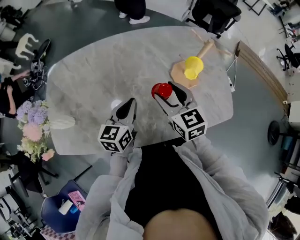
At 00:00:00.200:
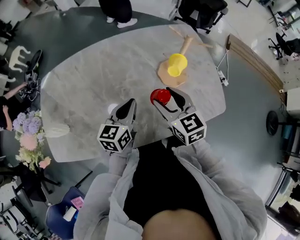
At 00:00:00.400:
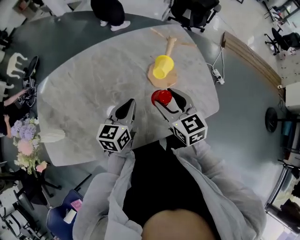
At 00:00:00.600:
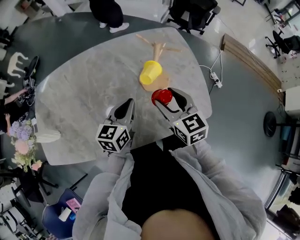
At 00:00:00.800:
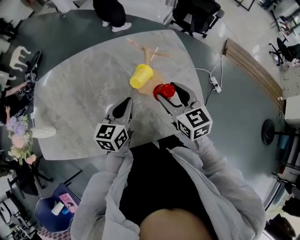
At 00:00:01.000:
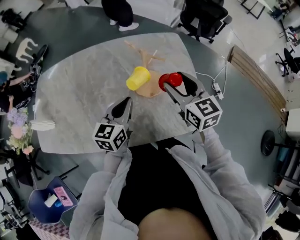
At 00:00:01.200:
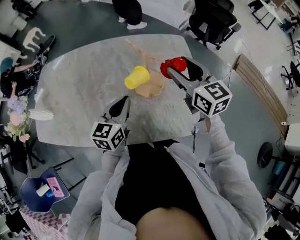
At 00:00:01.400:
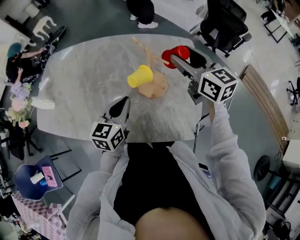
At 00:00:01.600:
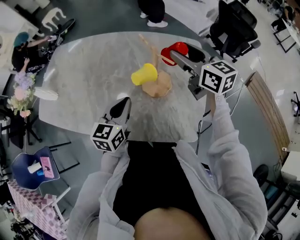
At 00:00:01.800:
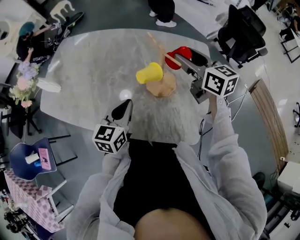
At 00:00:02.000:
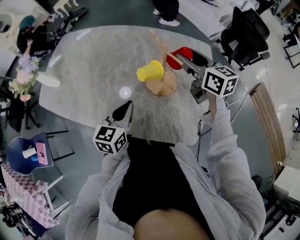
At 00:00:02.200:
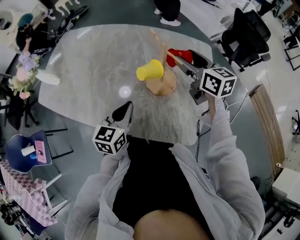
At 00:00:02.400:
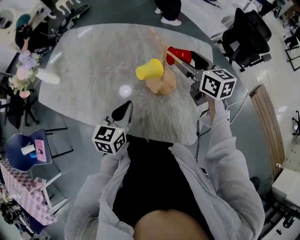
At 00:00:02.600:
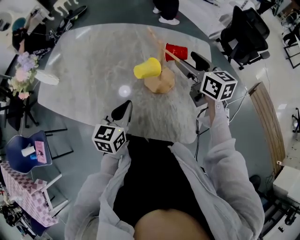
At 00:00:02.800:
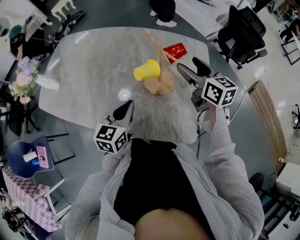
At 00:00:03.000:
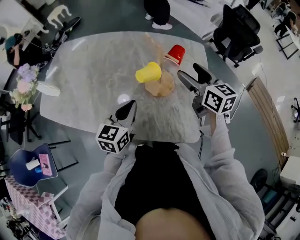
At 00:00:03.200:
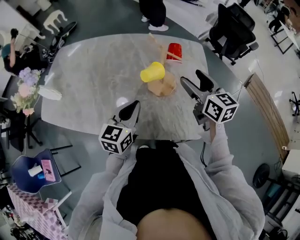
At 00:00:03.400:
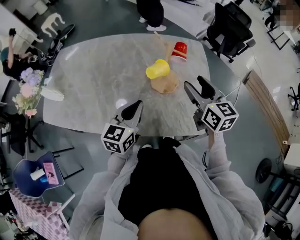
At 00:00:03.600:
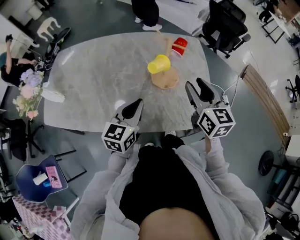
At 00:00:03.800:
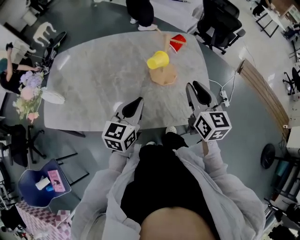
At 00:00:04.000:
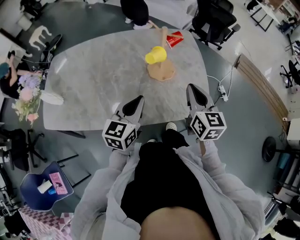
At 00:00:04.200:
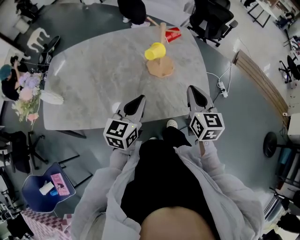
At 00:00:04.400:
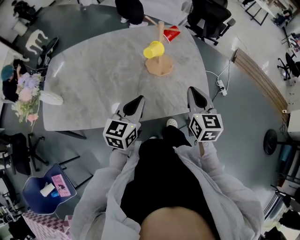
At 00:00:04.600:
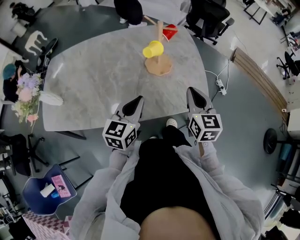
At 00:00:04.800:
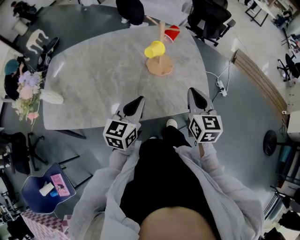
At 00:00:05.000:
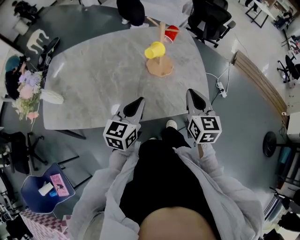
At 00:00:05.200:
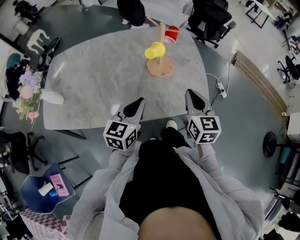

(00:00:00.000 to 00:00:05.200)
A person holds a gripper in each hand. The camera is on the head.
00:00:00.000 - 00:00:01.800: The right gripper changes place by approximately 30 cm, and changes its angle by approximately 30 degrees. Meanwhile the left gripper shifts by some 20 cm, and rotates about 20 degrees.
00:00:01.800 - 00:00:03.400: The right gripper travels backward by roughly 15 cm, and swivels roughly 20 degrees.
00:00:03.400 - 00:00:05.200: The left gripper shifts some 10 cm backward, while the right gripper shifts approximately 15 cm backward, rotates approximately 20 degrees, and closes up.

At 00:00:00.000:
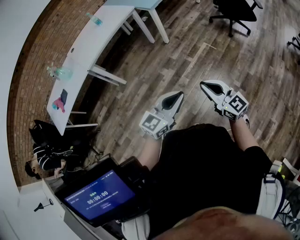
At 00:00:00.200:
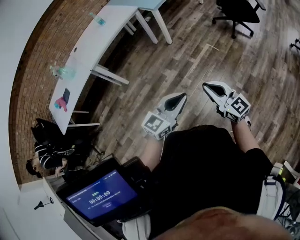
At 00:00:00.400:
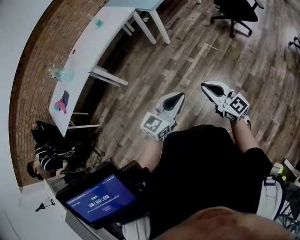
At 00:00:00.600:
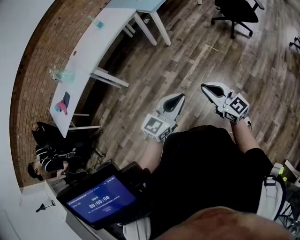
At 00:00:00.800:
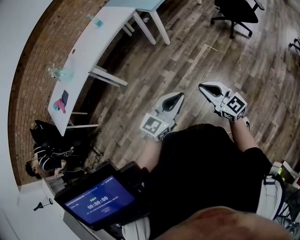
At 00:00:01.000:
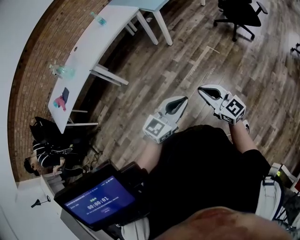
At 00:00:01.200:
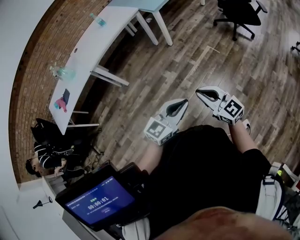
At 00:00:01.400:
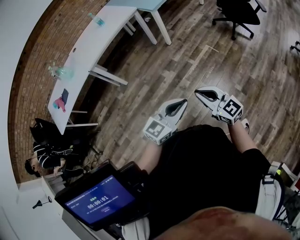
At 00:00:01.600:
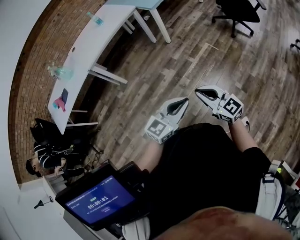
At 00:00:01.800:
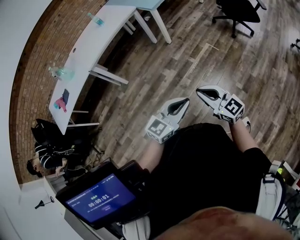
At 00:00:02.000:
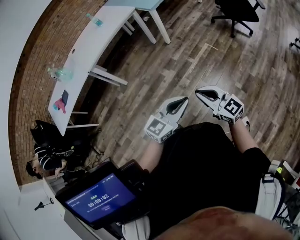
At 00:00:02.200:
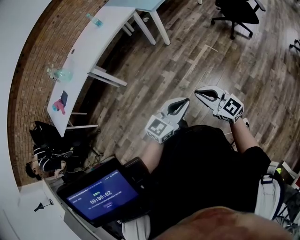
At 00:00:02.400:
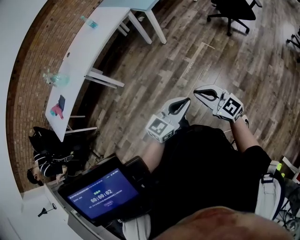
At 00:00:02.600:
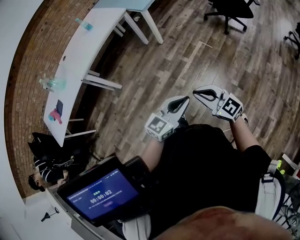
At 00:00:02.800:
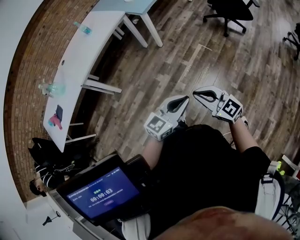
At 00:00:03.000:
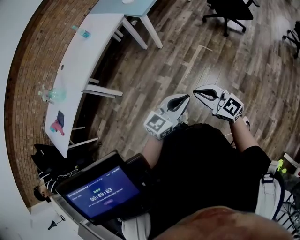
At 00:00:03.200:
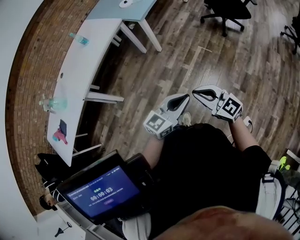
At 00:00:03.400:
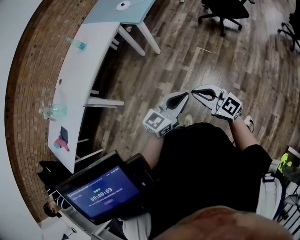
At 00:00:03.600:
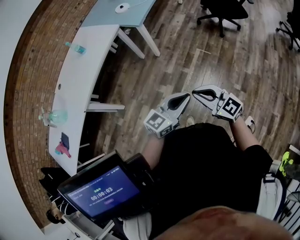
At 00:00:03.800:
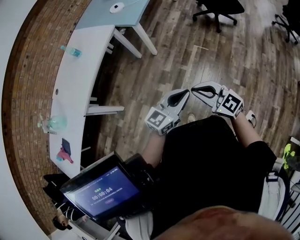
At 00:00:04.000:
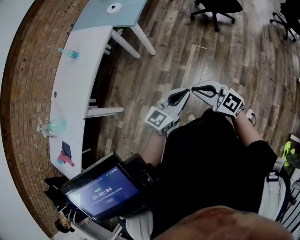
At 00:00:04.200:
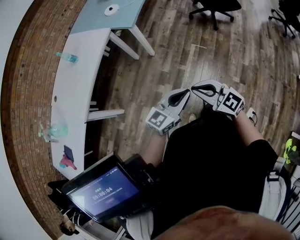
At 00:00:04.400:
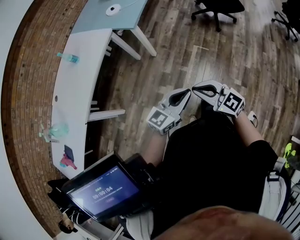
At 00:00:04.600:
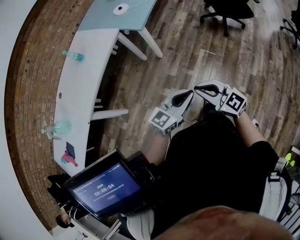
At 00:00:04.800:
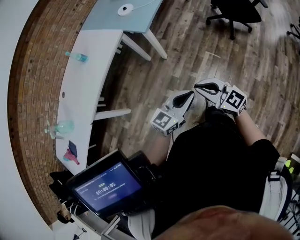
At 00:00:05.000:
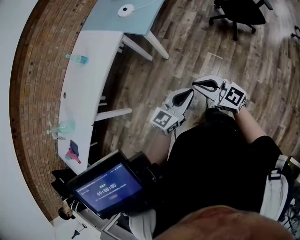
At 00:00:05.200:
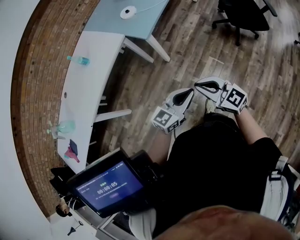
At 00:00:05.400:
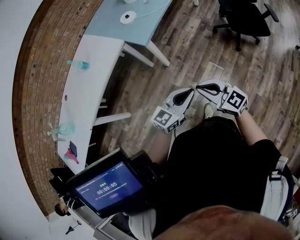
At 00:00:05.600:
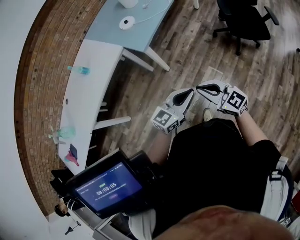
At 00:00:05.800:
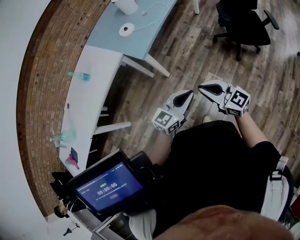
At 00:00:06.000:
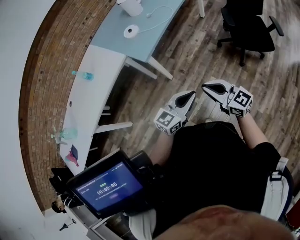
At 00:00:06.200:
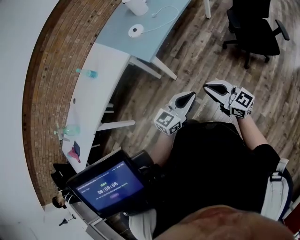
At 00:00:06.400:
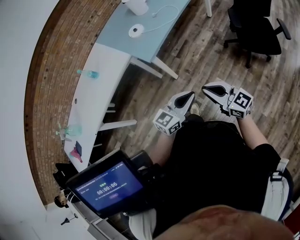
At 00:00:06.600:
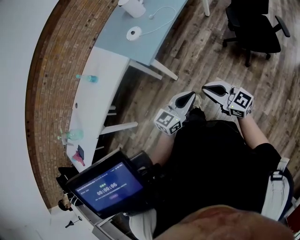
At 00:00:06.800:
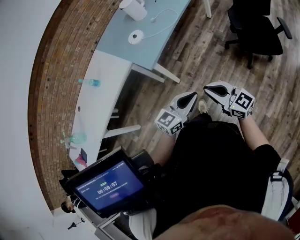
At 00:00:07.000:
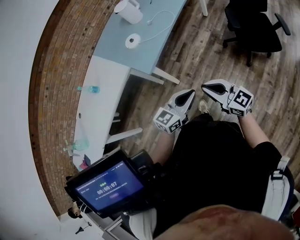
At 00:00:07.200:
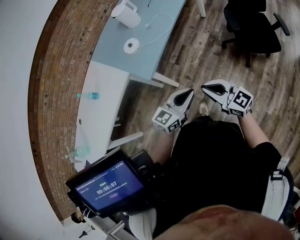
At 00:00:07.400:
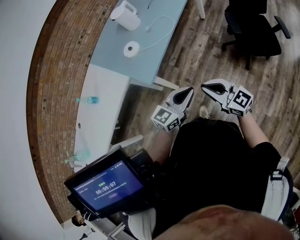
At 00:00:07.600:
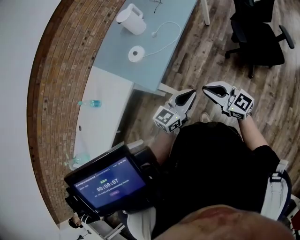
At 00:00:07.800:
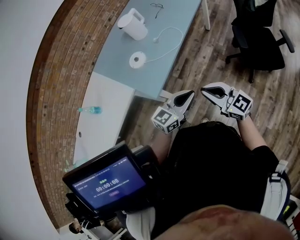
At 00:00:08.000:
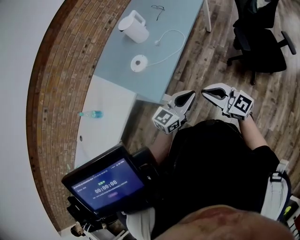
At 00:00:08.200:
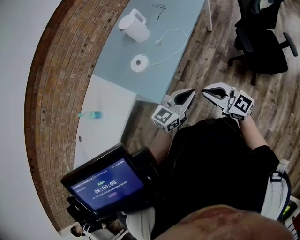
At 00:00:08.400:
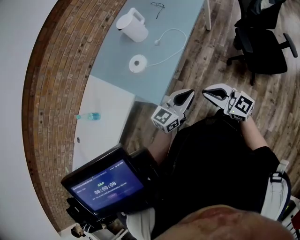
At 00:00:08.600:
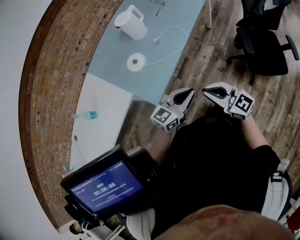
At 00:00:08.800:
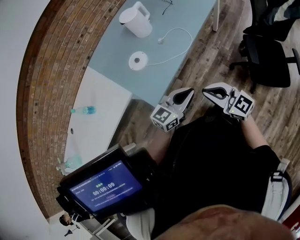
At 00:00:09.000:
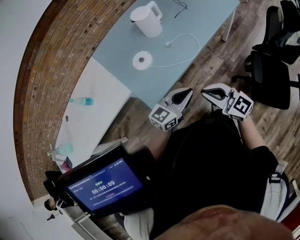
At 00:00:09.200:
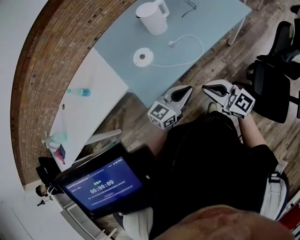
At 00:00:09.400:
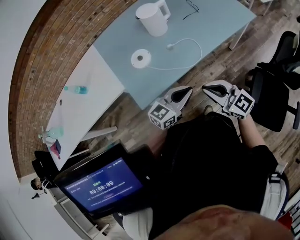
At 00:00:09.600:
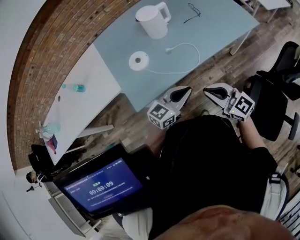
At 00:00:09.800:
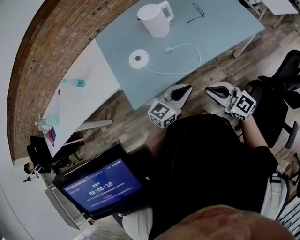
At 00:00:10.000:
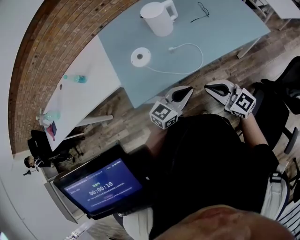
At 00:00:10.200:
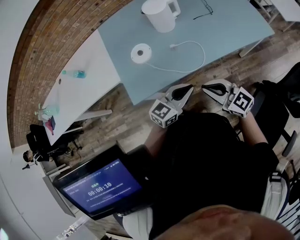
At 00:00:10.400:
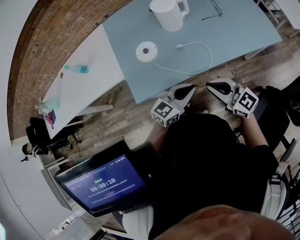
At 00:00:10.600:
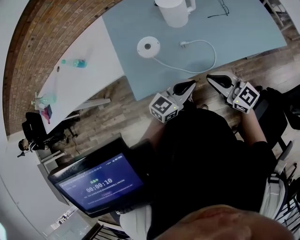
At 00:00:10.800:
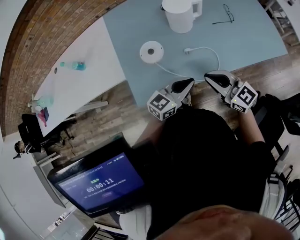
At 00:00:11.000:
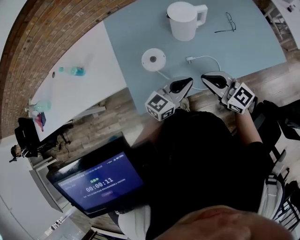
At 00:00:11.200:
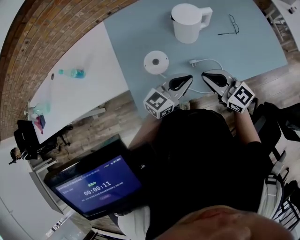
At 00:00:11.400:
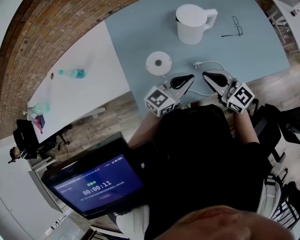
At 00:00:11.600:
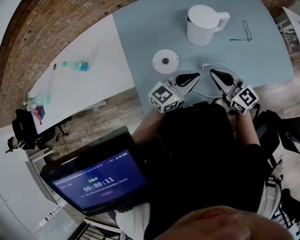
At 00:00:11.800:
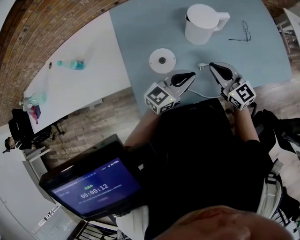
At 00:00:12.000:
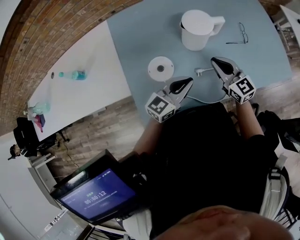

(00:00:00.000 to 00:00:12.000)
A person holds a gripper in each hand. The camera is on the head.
00:00:00.000 - 00:00:01.600: The grippers make only small movements.
00:00:01.600 - 00:00:03.000: Both grippers travel together forward, approximately 10 cm.
00:00:03.000 - 00:00:04.400: The right gripper moves forward and to the left, roughly 15 cm. Meanwhile the left gripper is displaced forward by about 15 cm.
00:00:04.400 - 00:00:06.000: Both grippers travel together forward and to the right, approximately 30 cm.
00:00:06.000 - 00:00:07.600: Both grippers travel together forward, approximately 20 cm.
00:00:07.600 - 00:00:09.000: Both grippers move forward, roughly 20 cm.
00:00:09.000 - 00:00:10.400: The grippers both shift forward and to the right by roughly 15 cm. The right gripper swivels roughly 20 degrees; the left gripper turns by some 20 degrees.
00:00:10.400 - 00:00:12.000: The right gripper shifts roughly 25 cm forward. Meanwhile the left gripper goes approximately 20 cm forward and to the left.

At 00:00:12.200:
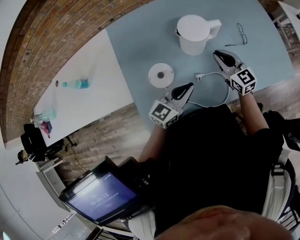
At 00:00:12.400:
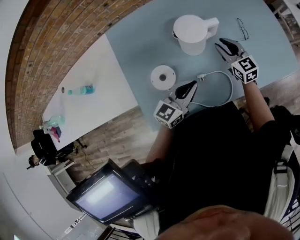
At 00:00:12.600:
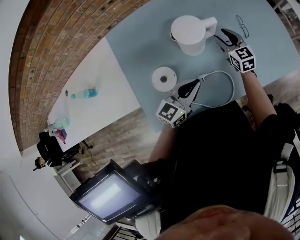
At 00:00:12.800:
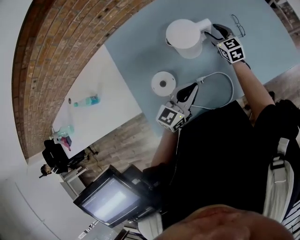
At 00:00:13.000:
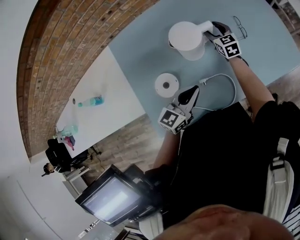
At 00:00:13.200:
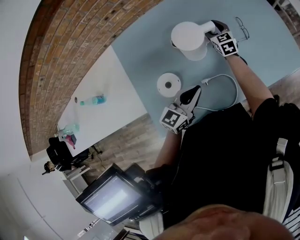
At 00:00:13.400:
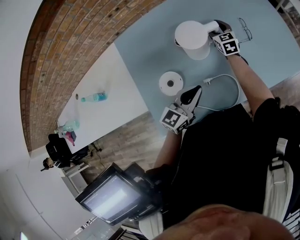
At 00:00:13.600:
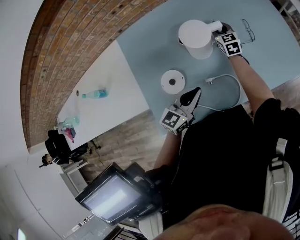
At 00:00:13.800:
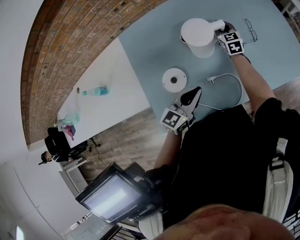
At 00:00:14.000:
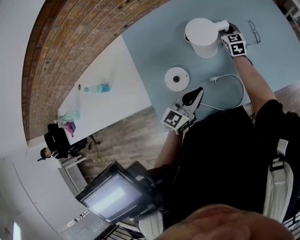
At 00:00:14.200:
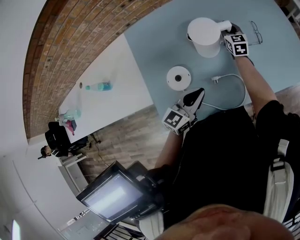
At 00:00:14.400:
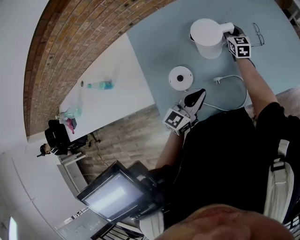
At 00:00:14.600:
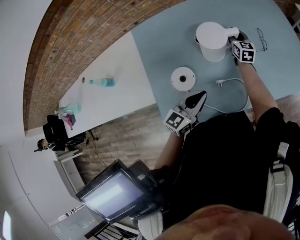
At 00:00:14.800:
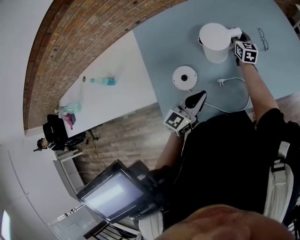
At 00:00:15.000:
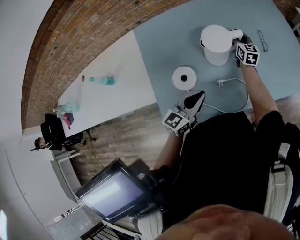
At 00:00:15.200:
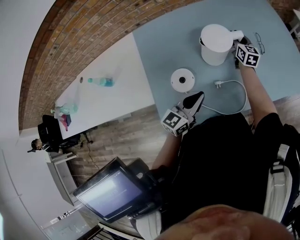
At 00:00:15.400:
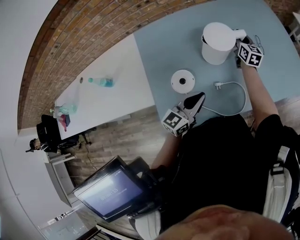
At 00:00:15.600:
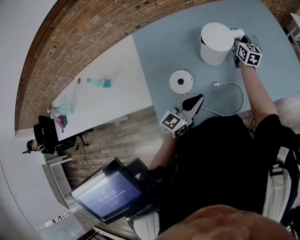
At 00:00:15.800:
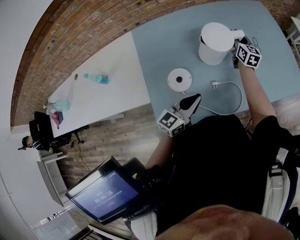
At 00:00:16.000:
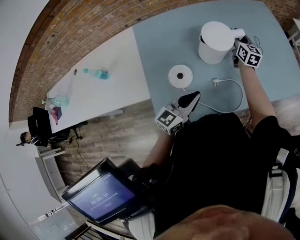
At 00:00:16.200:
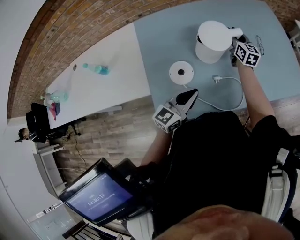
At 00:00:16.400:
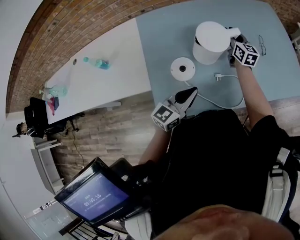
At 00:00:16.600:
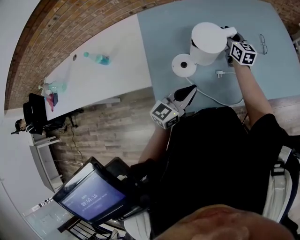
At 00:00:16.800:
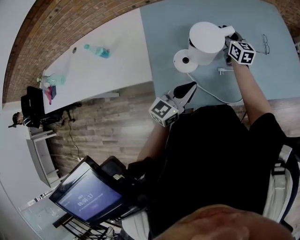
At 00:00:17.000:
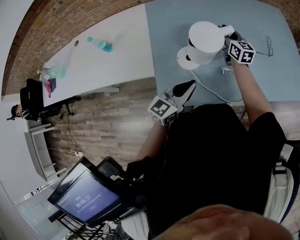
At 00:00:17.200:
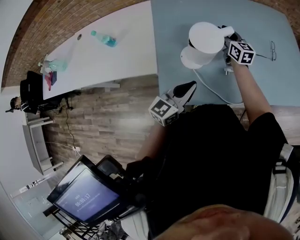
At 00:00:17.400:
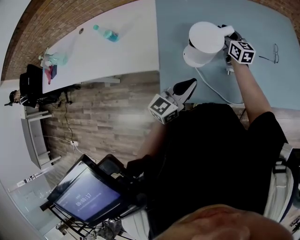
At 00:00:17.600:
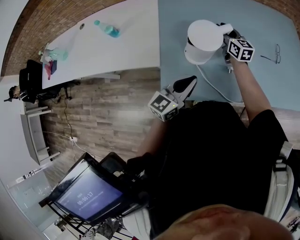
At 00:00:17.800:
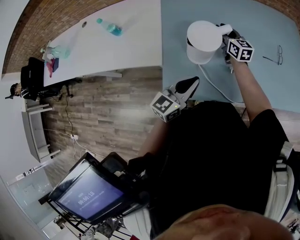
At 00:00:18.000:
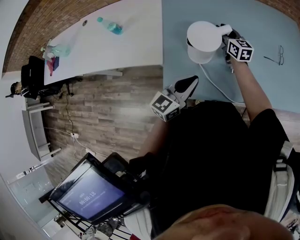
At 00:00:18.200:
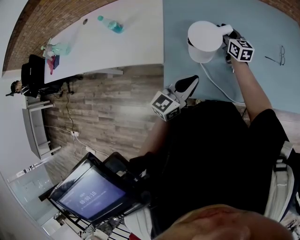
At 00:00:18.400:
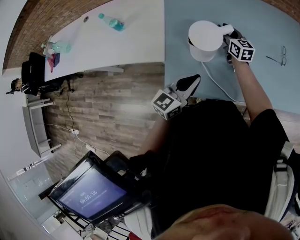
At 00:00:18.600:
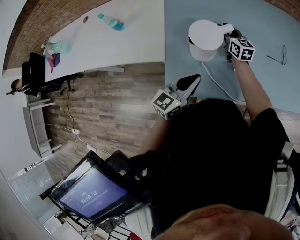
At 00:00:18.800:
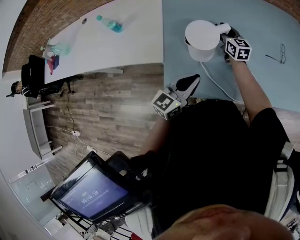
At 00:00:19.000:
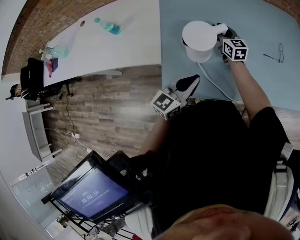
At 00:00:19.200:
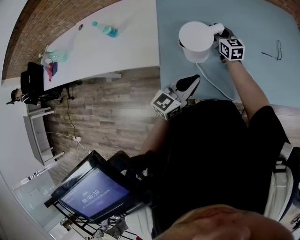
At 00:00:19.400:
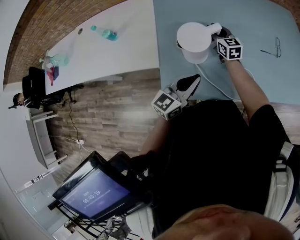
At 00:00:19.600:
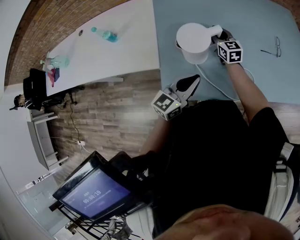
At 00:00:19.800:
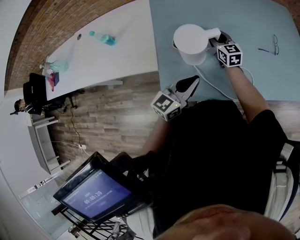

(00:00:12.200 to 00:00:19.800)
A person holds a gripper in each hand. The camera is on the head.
00:00:12.200 - 00:00:13.800: The right gripper heads forward, covering roughly 20 cm, changes its angle by roughly 20 degrees, and opens and closes again.
00:00:13.800 - 00:00:15.200: The right gripper ends up some 5 cm from where it was, and rotates roughly 20 degrees.
00:00:15.200 - 00:00:16.800: The left gripper heads backward, covering approximately 5 cm. Meanwhile the right gripper travels to the left and backward by roughly 15 cm.
00:00:16.800 - 00:00:18.200: The left gripper moves approximately 5 cm. The right gripper is displaced to the left by about 10 cm.
00:00:18.200 - 00:00:19.800: The grippers stay close to where they were, moving slightly.
